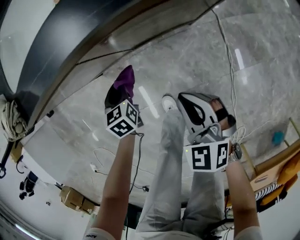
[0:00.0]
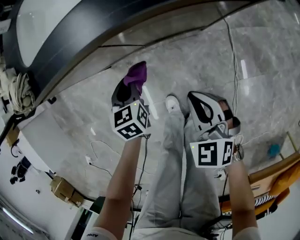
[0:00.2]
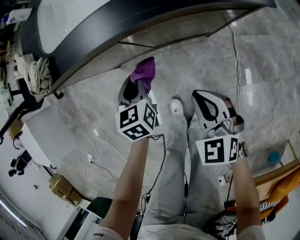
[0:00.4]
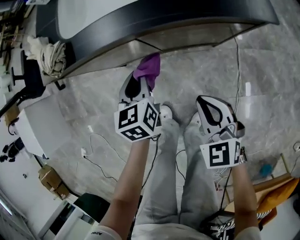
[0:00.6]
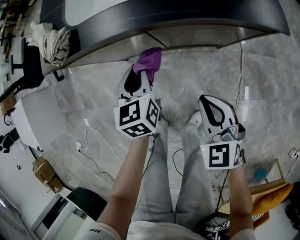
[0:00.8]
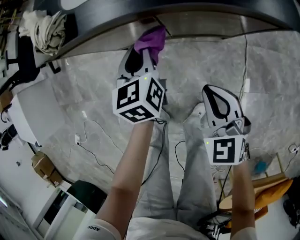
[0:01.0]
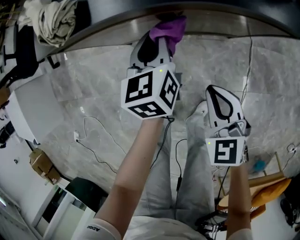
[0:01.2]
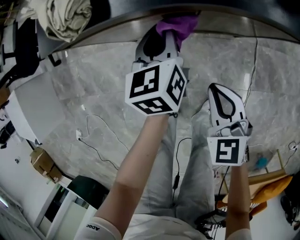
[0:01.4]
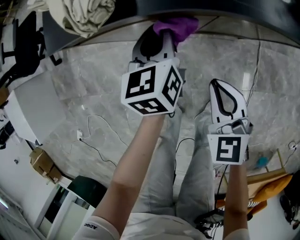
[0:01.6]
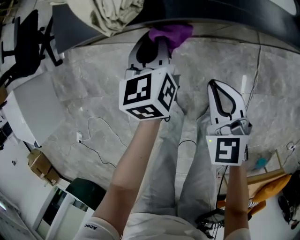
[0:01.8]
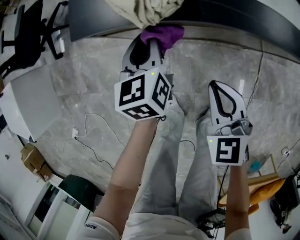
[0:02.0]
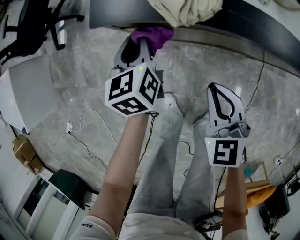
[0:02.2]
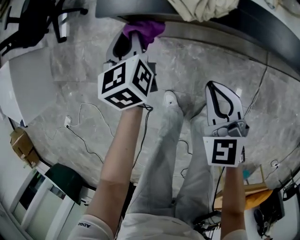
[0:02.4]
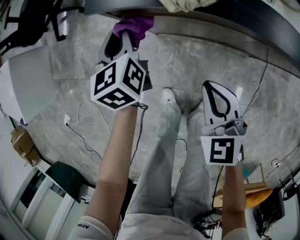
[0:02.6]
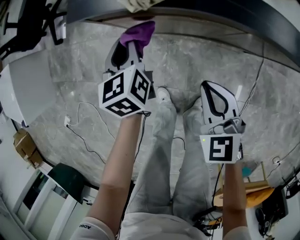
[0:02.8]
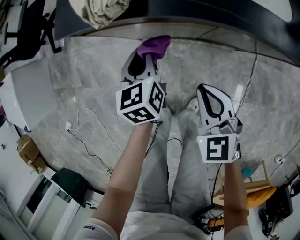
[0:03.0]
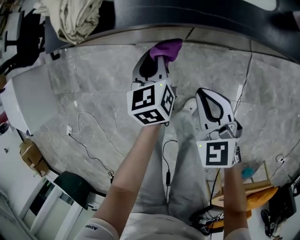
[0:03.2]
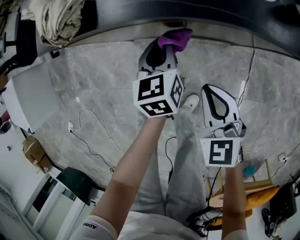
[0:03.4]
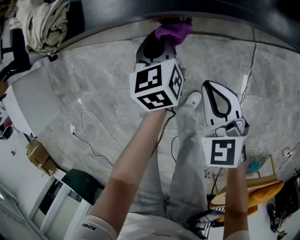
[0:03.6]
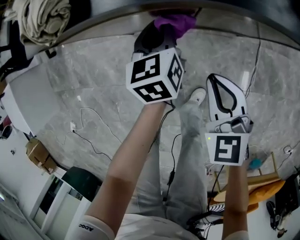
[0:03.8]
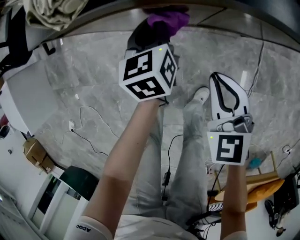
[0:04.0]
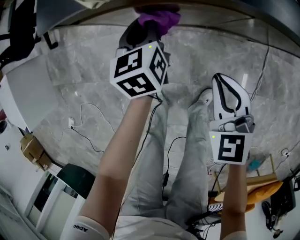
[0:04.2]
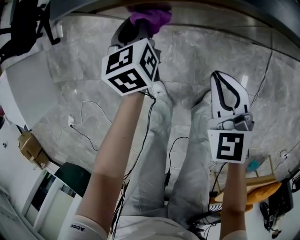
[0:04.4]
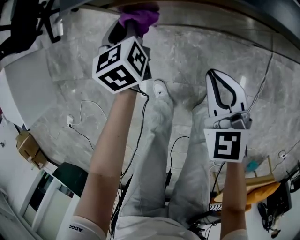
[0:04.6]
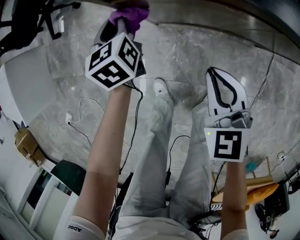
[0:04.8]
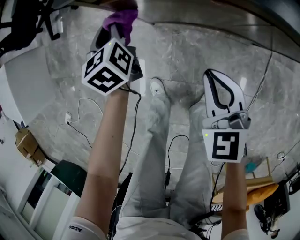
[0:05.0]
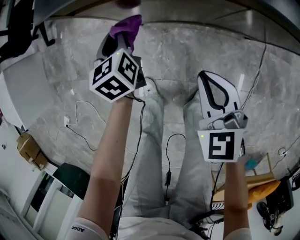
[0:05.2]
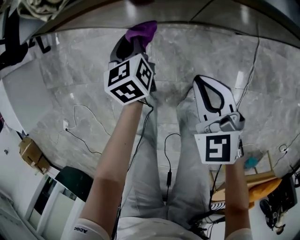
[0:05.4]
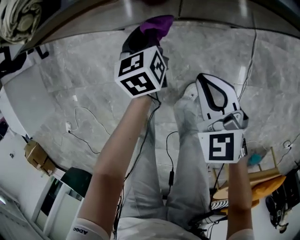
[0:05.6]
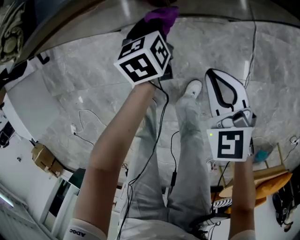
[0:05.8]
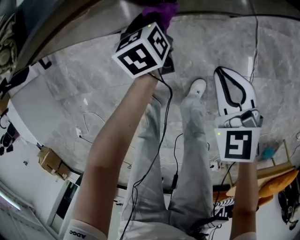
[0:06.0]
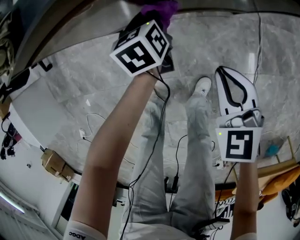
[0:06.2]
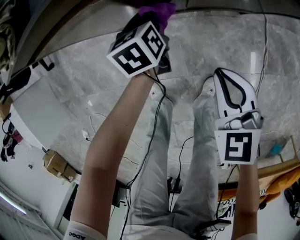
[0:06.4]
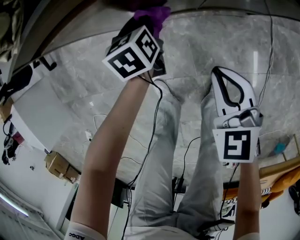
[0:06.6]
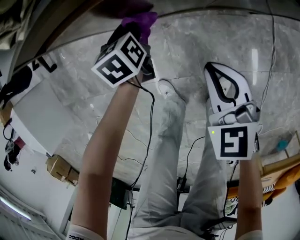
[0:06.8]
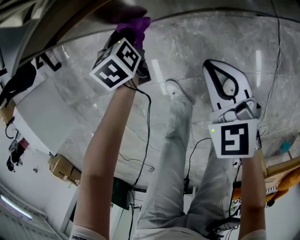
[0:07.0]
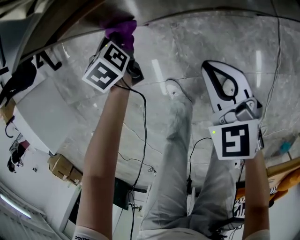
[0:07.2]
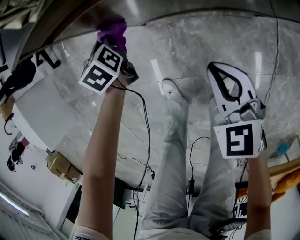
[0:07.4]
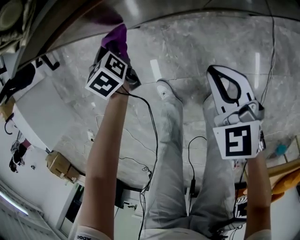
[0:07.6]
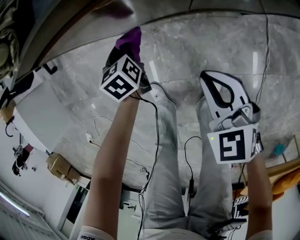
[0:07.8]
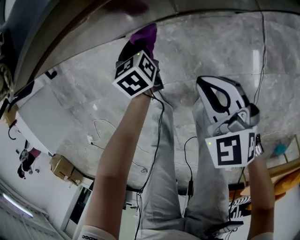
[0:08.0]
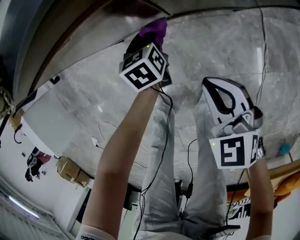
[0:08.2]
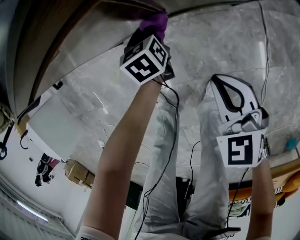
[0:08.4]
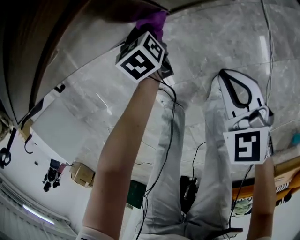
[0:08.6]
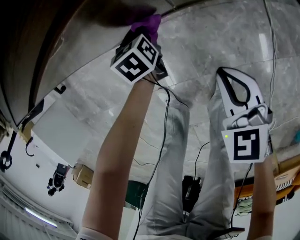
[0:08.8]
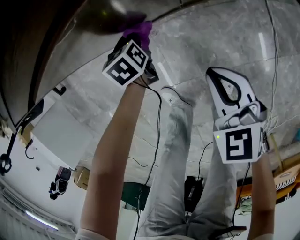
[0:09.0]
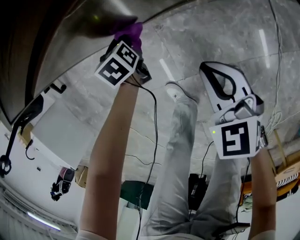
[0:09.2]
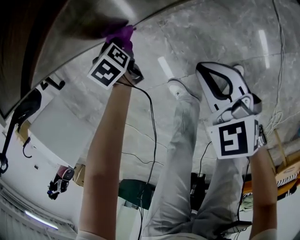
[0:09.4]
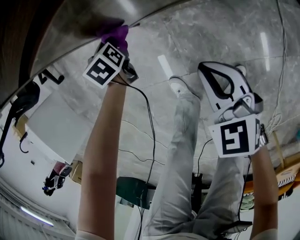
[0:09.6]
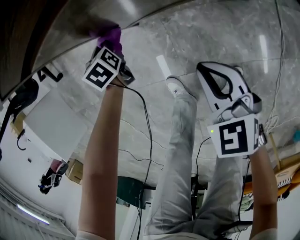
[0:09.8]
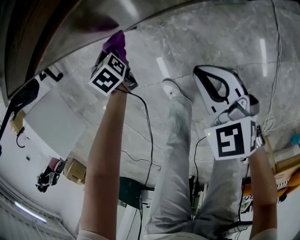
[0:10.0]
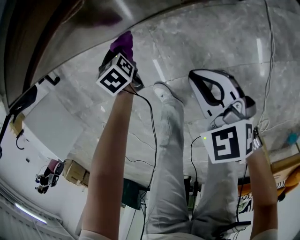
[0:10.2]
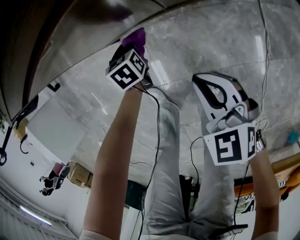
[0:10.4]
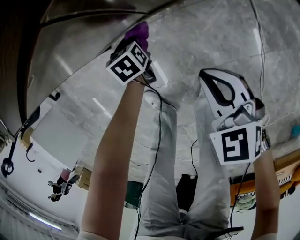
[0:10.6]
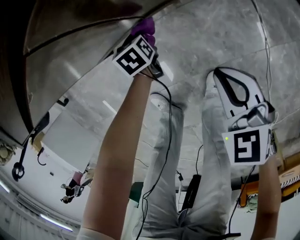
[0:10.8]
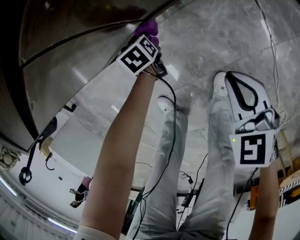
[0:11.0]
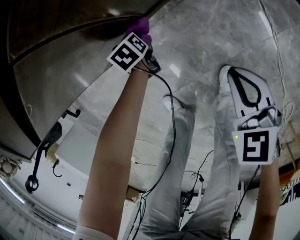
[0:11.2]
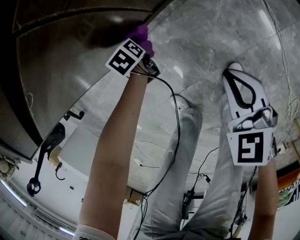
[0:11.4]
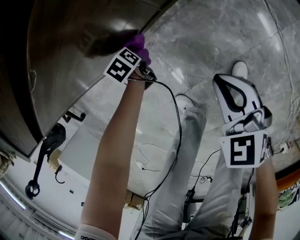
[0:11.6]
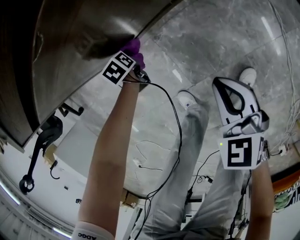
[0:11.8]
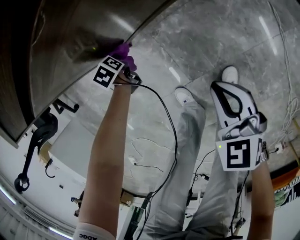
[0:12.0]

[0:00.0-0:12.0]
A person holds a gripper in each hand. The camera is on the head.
0.0 to 1.6 s: The left gripper goes about 20 cm upward and forward, and rotates approximately 30 degrees. The right gripper travels to the left, upward and forward by some 20 cm.
1.6 to 3.0 s: The right gripper moves about 10 cm to the left and comes back; the left gripper goes to the left and returns, roughly 25 cm each way.
3.0 to 4.4 s: The left gripper shifts roughly 15 cm to the left, forward and downward; the right gripper is displaced to the left by about 5 cm.
4.4 to 6.0 s: The left gripper travels to the right and downward by about 25 cm; the right gripper heads to the right and backward, covering roughly 20 cm.
6.0 to 7.6 s: The right gripper shifts about 15 cm to the left; the left gripper heads to the left, covering about 30 cm.
7.6 to 9.0 s: The left gripper travels to the right and downward by some 20 cm, while the right gripper moves downward, roughly 5 cm, and moves approximately 15 cm to the right and comes back.
9.0 to 10.4 s: The right gripper travels to the left and back again, some 10 cm each way; the left gripper goes roughly 5 cm backward, and reaches some 20 cm to the left, then returns.
10.4 to 12.0 s: The right gripper is displaced to the left by some 10 cm, and swivels about 20 degrees. Meanwhile the left gripper goes approximately 20 cm to the left.

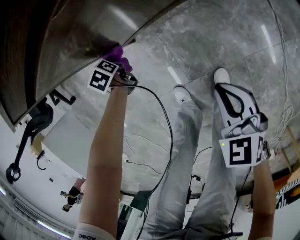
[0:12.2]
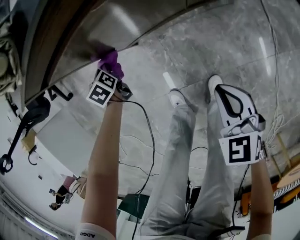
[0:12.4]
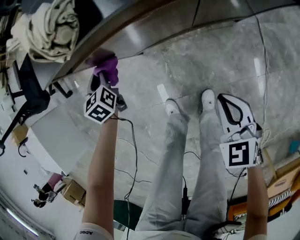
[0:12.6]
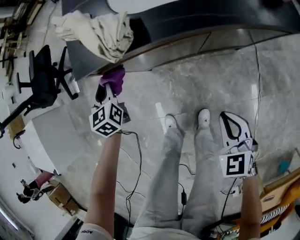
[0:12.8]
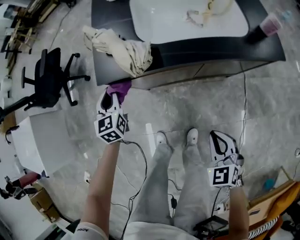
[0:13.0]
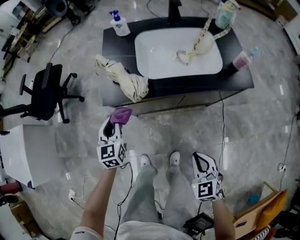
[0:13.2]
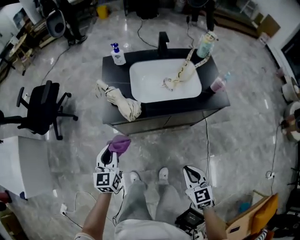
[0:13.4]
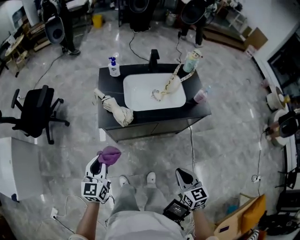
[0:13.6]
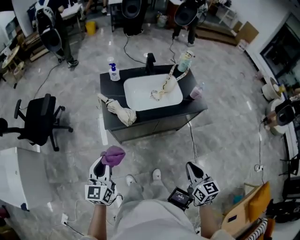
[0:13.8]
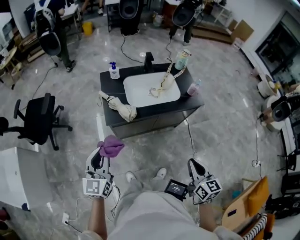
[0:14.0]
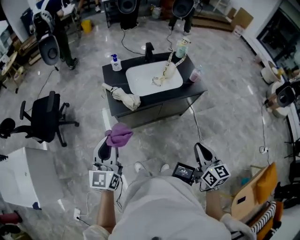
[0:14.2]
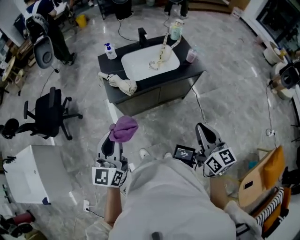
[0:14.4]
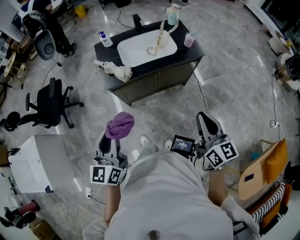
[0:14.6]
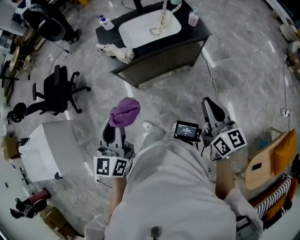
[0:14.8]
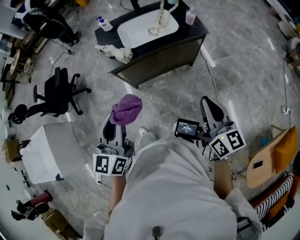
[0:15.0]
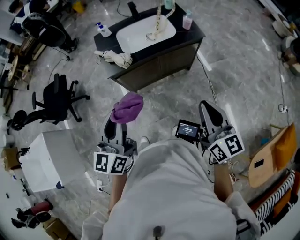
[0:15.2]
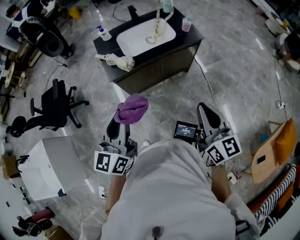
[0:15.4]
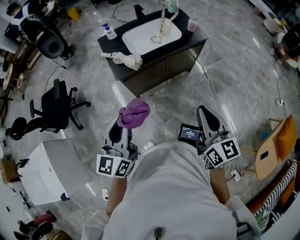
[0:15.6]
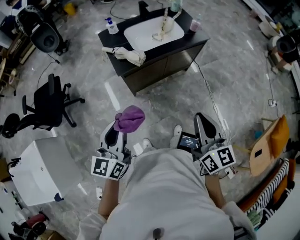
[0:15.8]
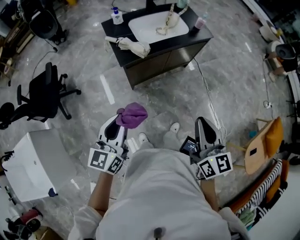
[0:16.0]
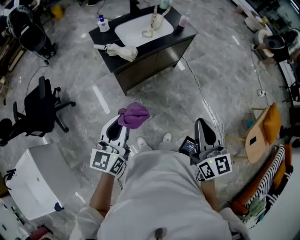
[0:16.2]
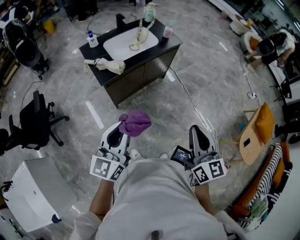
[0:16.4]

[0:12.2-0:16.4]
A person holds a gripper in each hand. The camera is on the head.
12.2 to 13.6 s: The grippers both shift upward by about 60 cm. The right gripper changes its angle by some 20 degrees. The left gripper tilts its fingers approximately 40 degrees upward.
13.6 to 15.0 s: The right gripper shifts about 20 cm upward and backward, and changes its angle by approximately 30 degrees. The left gripper heads upward, backward and to the right, covering about 30 cm.
15.0 to 16.4 s: The right gripper moves some 25 cm, and changes its angle by approximately 30 degrees. The left gripper moves about 5 cm downward and comes back, and changes its angle by about 30 degrees.

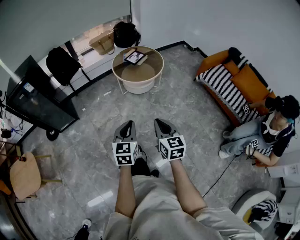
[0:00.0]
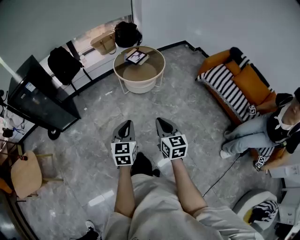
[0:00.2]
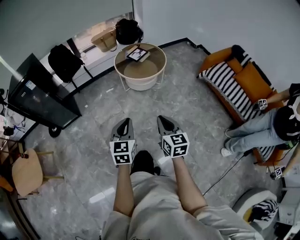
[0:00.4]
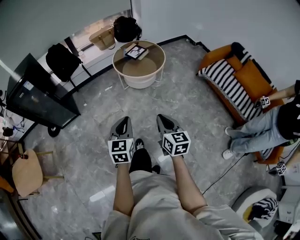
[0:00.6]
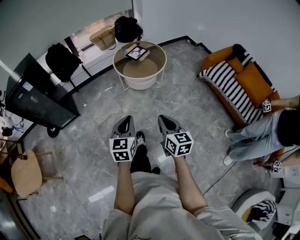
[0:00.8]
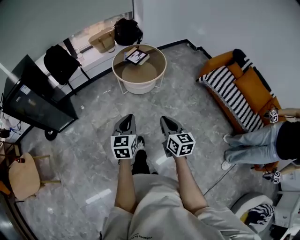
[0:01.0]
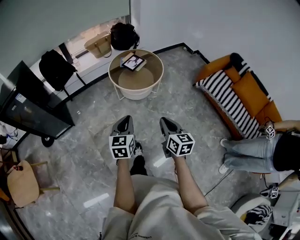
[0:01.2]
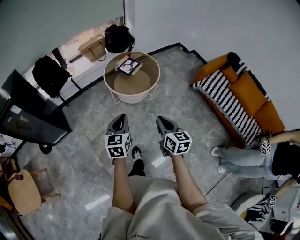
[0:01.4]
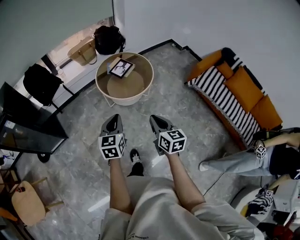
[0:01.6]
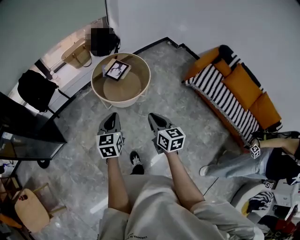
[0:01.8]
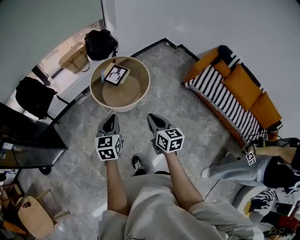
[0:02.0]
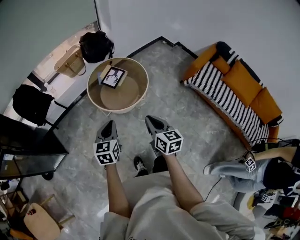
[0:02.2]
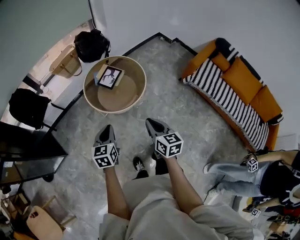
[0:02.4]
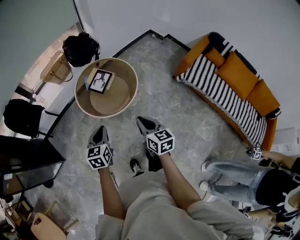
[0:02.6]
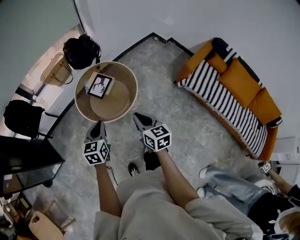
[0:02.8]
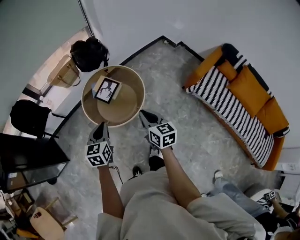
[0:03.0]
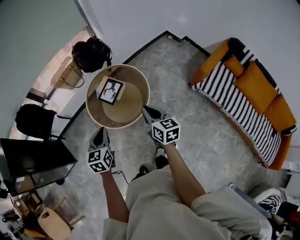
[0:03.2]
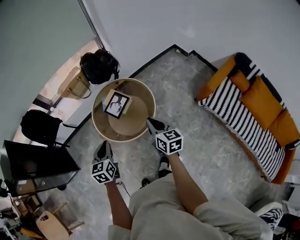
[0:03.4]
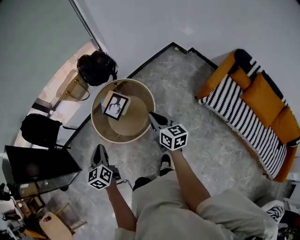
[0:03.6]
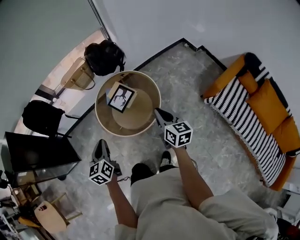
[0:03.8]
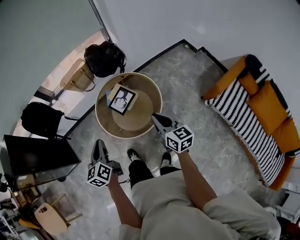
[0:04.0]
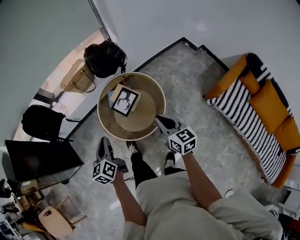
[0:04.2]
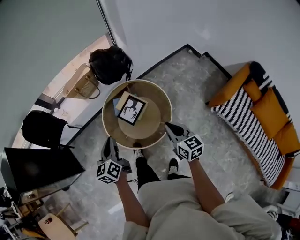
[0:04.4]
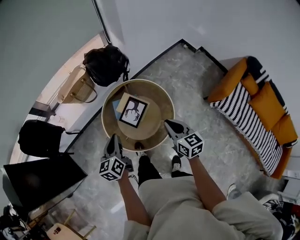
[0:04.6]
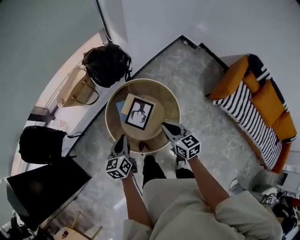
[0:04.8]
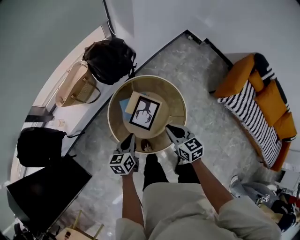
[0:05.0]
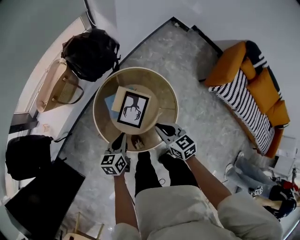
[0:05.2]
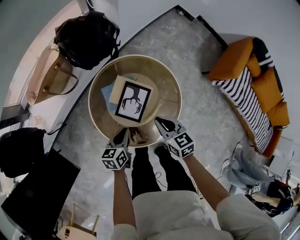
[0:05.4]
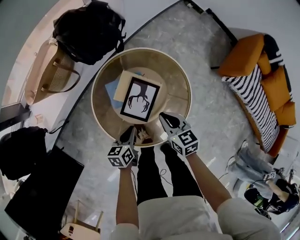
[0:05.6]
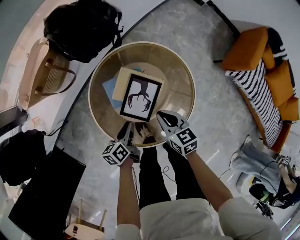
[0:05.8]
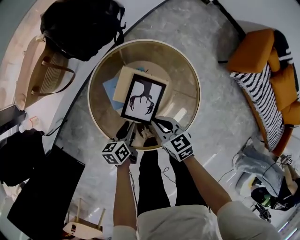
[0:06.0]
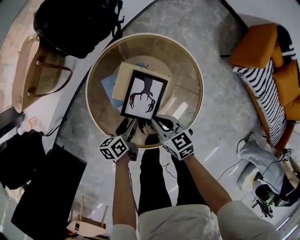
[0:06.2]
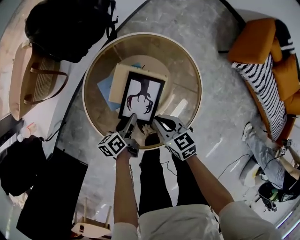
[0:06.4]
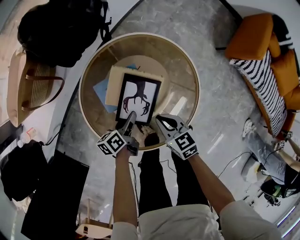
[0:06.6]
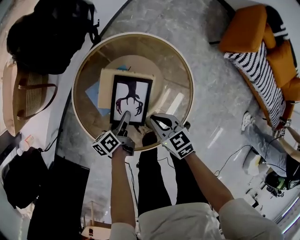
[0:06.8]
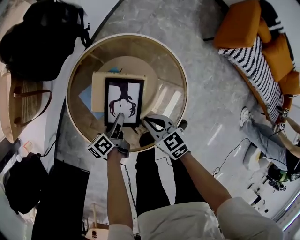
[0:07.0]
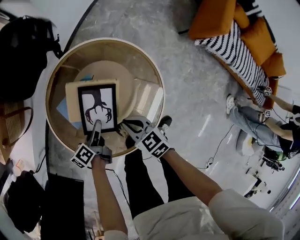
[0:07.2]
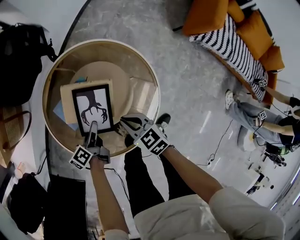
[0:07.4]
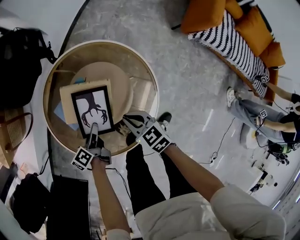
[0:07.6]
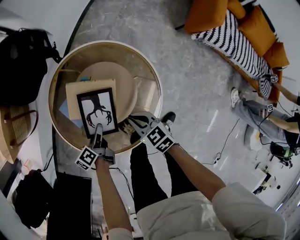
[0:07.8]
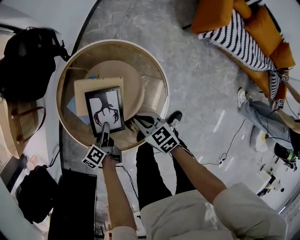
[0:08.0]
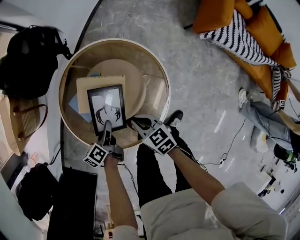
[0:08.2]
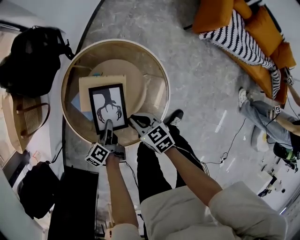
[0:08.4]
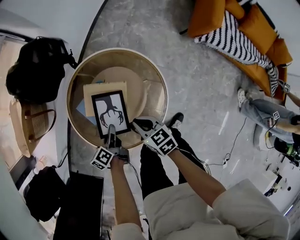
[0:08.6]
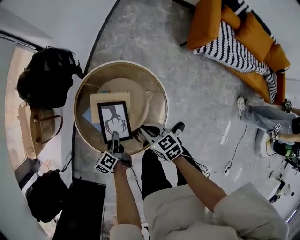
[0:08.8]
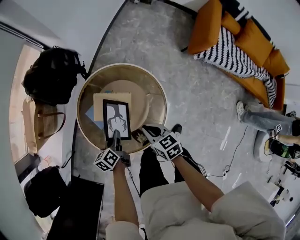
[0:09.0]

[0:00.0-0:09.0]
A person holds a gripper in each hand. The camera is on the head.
0.0 to 1.6 s: Both grippers travel together forward, about 30 cm.
1.6 to 3.0 s: The grippers both shift forward by roughly 30 cm.
3.0 to 4.4 s: The right gripper shifts some 20 cm forward; the left gripper moves forward and to the left, some 20 cm, and turns by about 30 degrees.
4.4 to 6.0 s: Both grippers travel together downward, roughly 40 cm. The left gripper turns by some 50 degrees, and opens its fingers. The right gripper turns by roughly 20 degrees.
6.0 to 7.6 s: The left gripper moves about 5 cm. Meanwhile the right gripper goes about 10 cm to the right.
7.6 to 9.0 s: The two grippers go some 15 cm upward. The left gripper closes.
